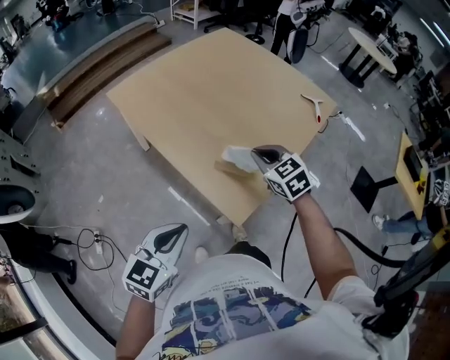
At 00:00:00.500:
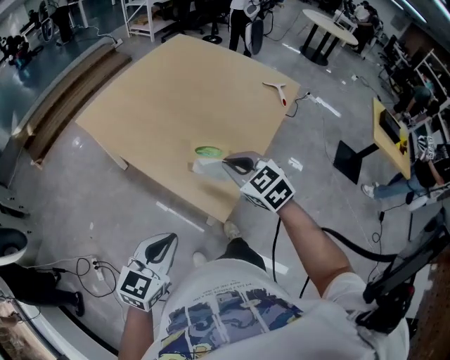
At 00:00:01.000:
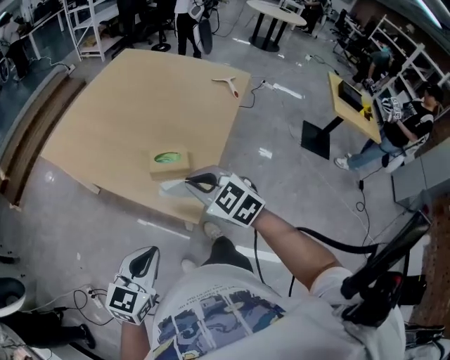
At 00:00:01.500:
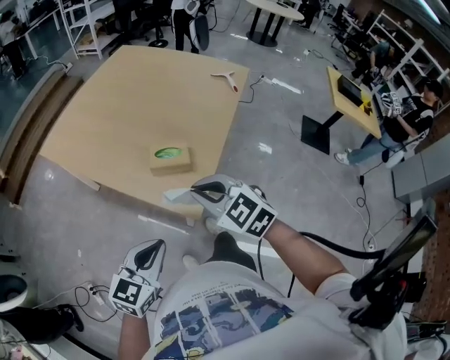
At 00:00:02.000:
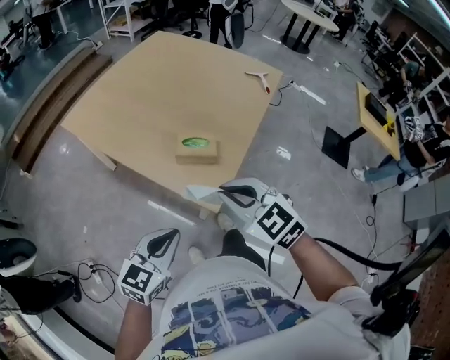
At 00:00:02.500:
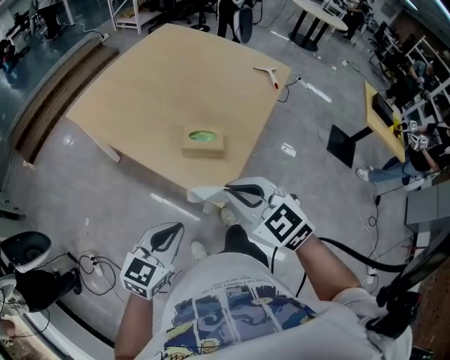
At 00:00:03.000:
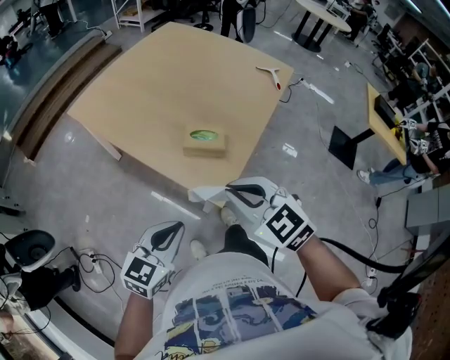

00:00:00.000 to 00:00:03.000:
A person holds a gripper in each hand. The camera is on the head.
00:00:00.000 to 00:00:01.500: The left gripper goes some 5 cm to the right, while the right gripper moves backward, approximately 15 cm.
00:00:01.500 to 00:00:03.000: The grippers stay close to where they were, moving slightly.

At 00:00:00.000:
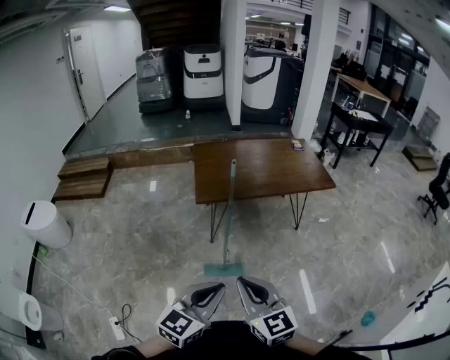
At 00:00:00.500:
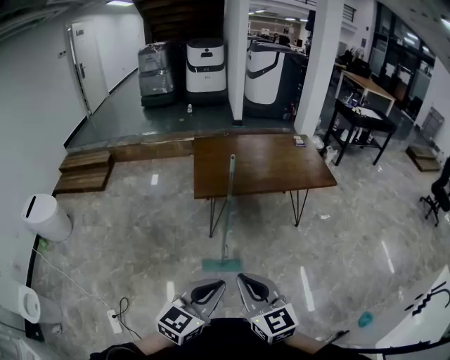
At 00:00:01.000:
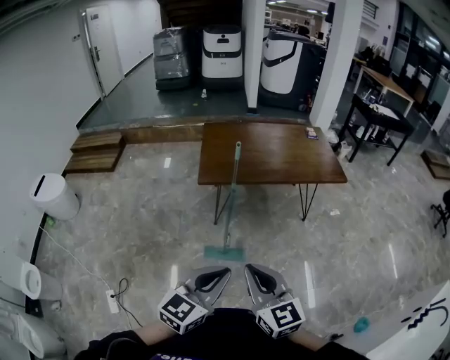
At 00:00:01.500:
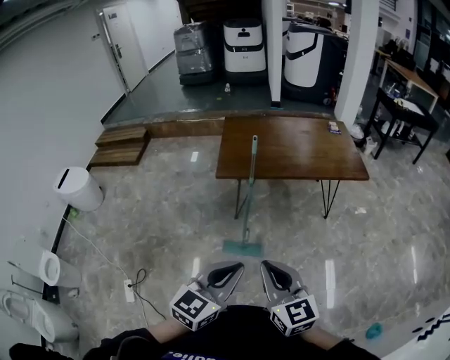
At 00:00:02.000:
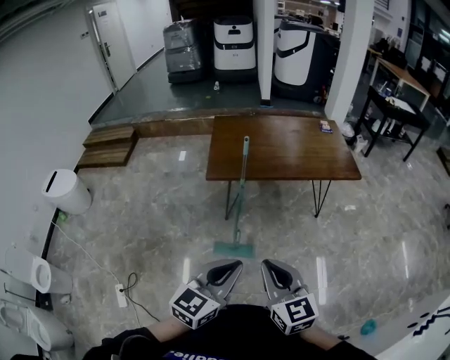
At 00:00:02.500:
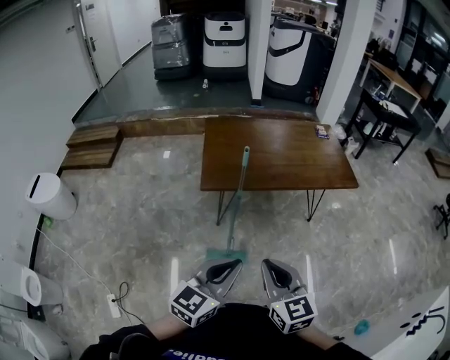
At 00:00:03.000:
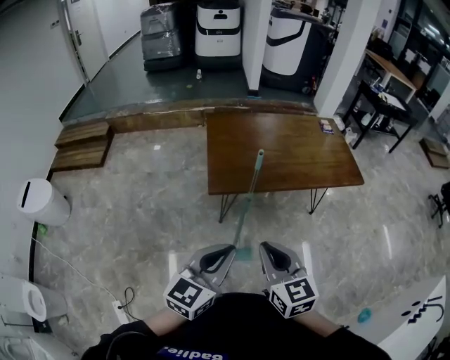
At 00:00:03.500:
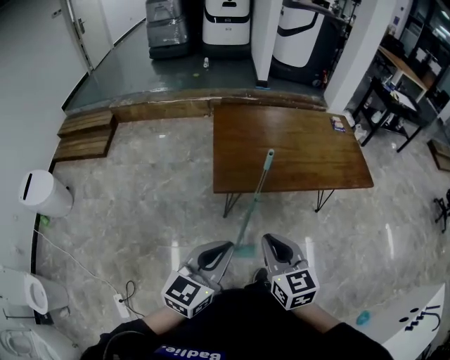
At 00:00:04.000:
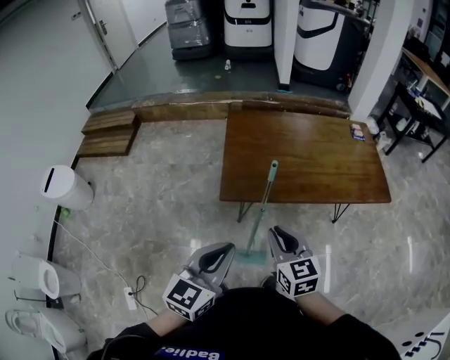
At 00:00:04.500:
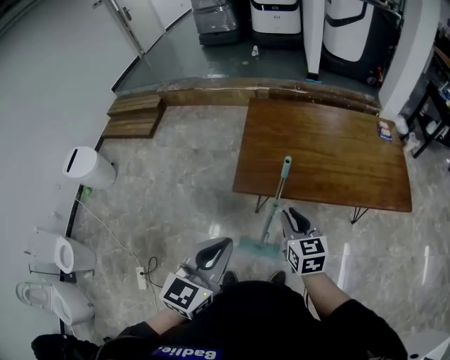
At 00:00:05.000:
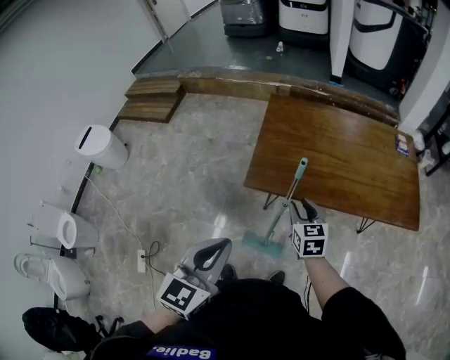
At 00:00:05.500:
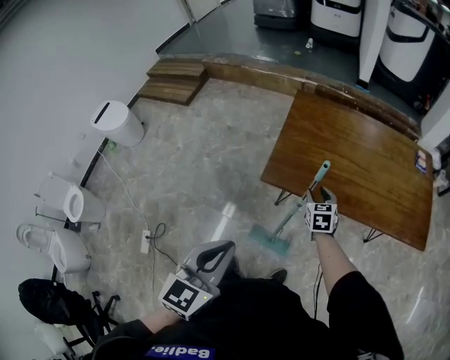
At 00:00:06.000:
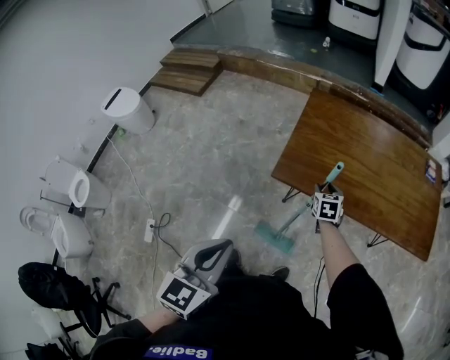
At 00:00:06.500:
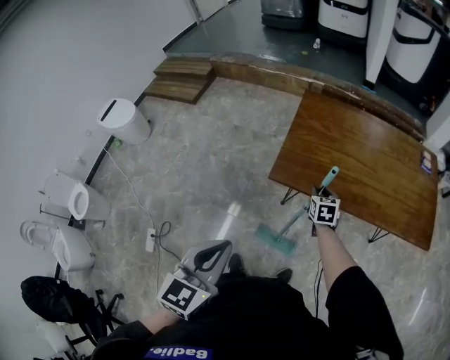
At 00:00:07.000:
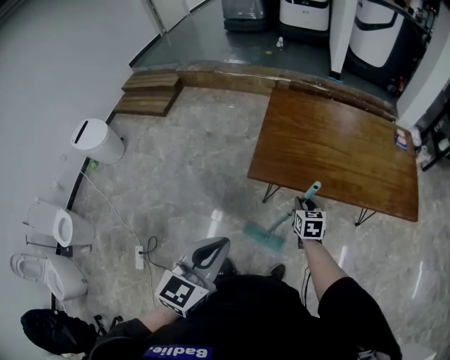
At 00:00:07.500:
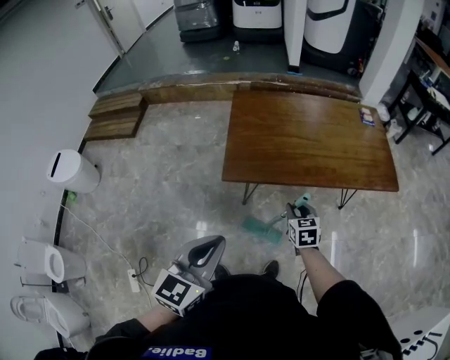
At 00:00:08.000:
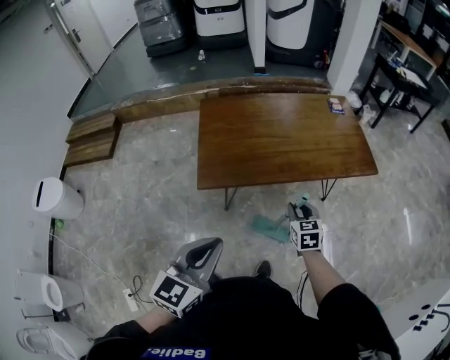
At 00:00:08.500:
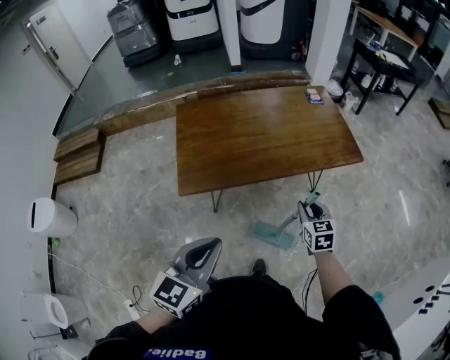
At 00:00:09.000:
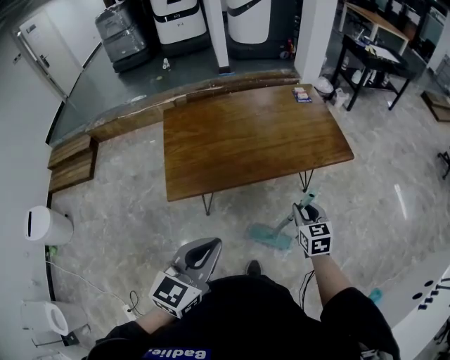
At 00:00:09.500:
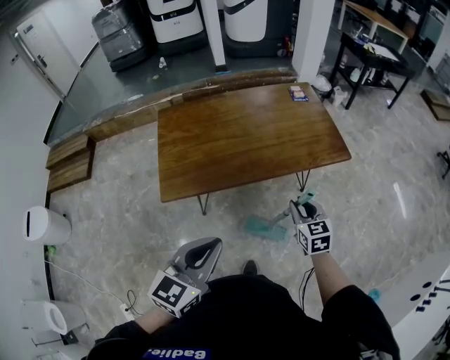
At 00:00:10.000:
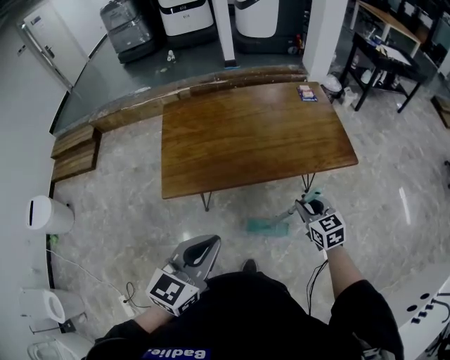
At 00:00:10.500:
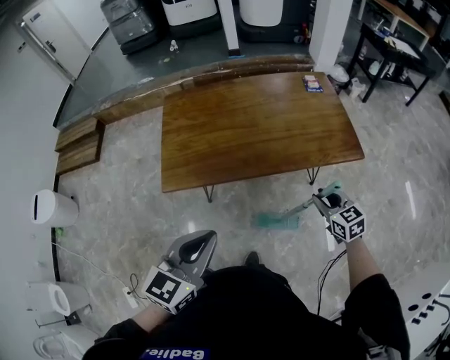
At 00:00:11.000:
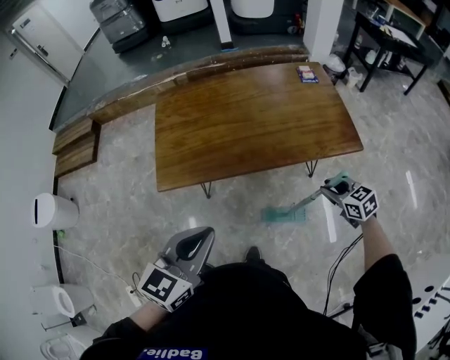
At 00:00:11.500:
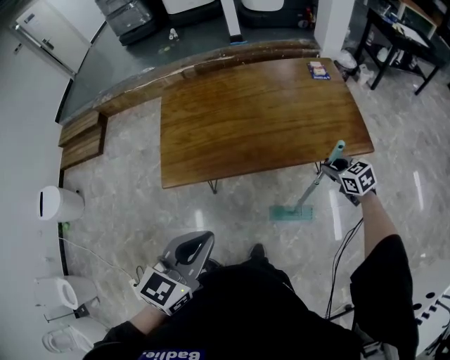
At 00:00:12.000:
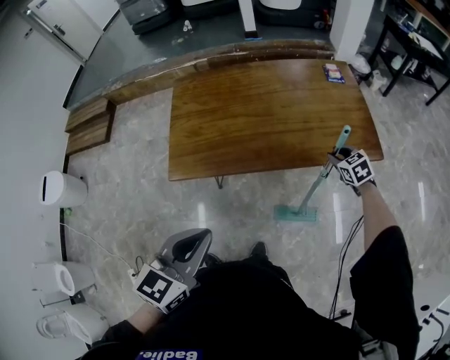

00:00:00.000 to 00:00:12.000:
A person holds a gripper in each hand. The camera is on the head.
00:00:00.000 to 00:00:02.000: Both grippers move to the right and forward, some 10 cm.
00:00:02.000 to 00:00:04.000: The right gripper goes some 30 cm forward; the left gripper goes some 25 cm forward and to the left.
00:00:04.000 to 00:00:06.000: The right gripper travels forward and downward by roughly 30 cm, and changes its angle by roughly 20 degrees. The left gripper turns by roughly 30 degrees.
00:00:06.000 to 00:00:08.000: The left gripper ends up approximately 10 cm from where it was, and rotates some 30 degrees; the right gripper ends up about 25 cm from where it was.
00:00:08.000 to 00:00:10.000: The left gripper goes roughly 15 cm to the right and forward; the right gripper goes about 15 cm to the right.
00:00:10.000 to 00:00:12.000: The right gripper is displaced forward, to the right and downward by about 20 cm, and rotates some 20 degrees.

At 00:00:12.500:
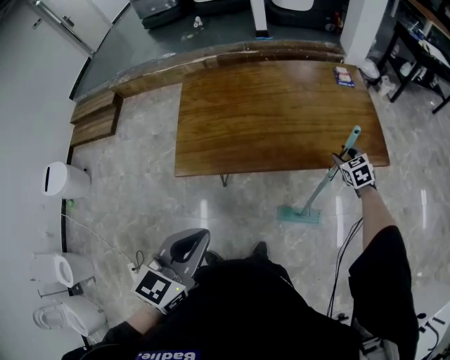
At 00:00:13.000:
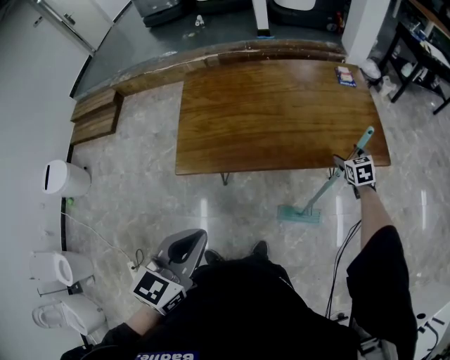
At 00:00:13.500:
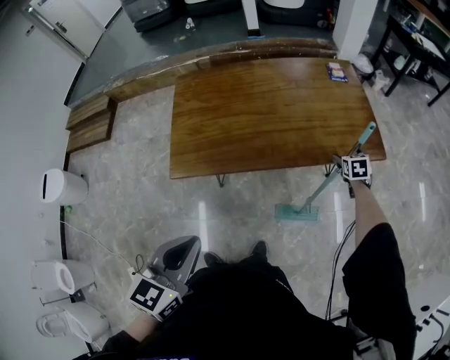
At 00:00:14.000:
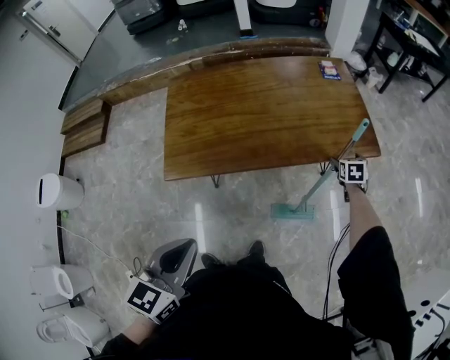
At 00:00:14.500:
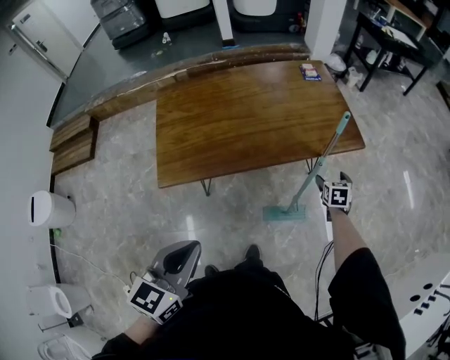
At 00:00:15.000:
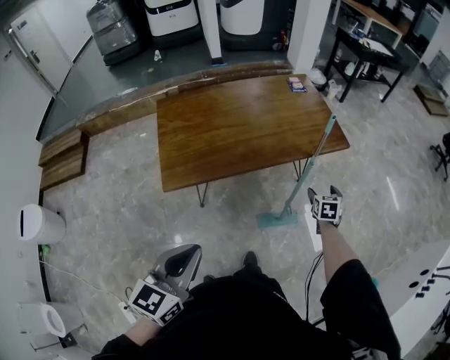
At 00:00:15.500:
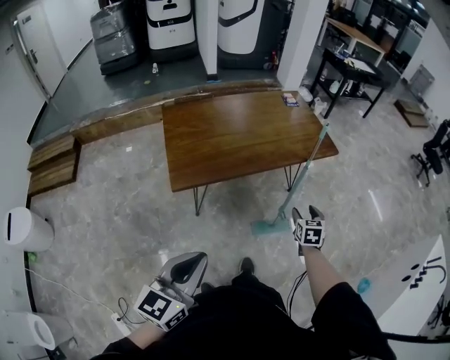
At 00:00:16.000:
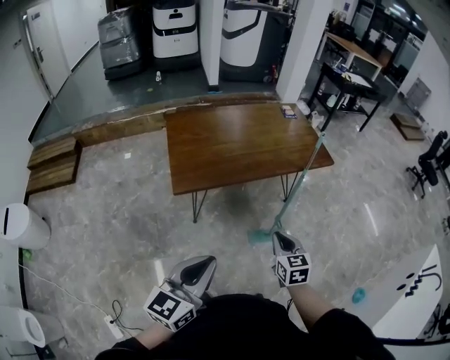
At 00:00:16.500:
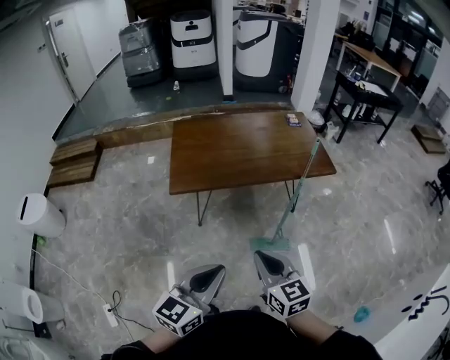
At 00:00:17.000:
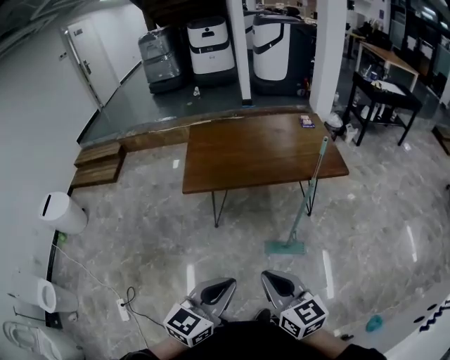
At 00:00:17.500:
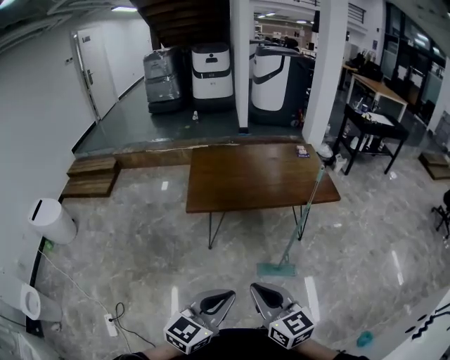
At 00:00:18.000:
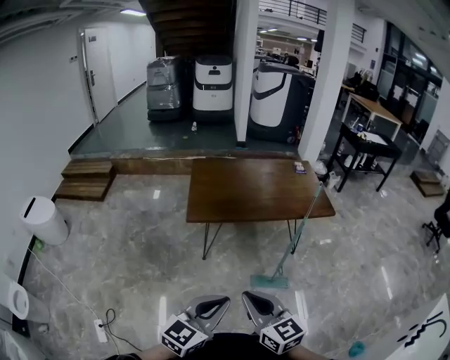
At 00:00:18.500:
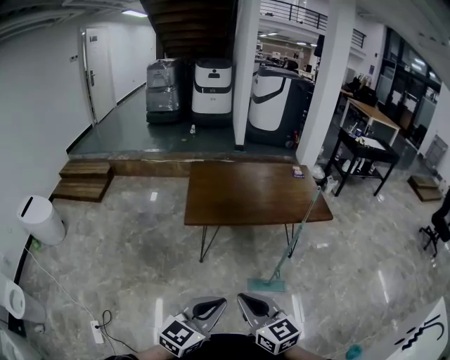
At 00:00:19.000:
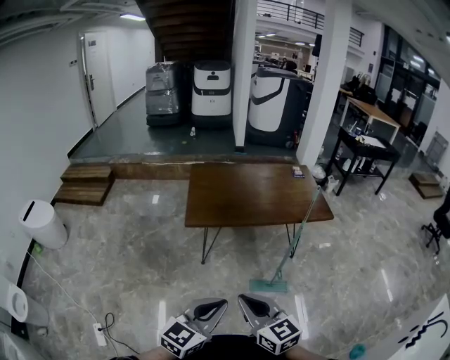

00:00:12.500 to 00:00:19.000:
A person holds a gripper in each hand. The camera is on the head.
00:00:12.500 to 00:00:14.500: The right gripper is displaced backward and to the right by some 15 cm, changes its angle by some 40 degrees, and opens up.
00:00:14.500 to 00:00:17.000: The left gripper ends up about 25 cm from where it was. Meanwhile the right gripper moves some 60 cm, points its fingers about 40 degrees further upward, and closes.
00:00:17.000 to 00:00:19.000: Both grippers travel together to the left, some 10 cm.

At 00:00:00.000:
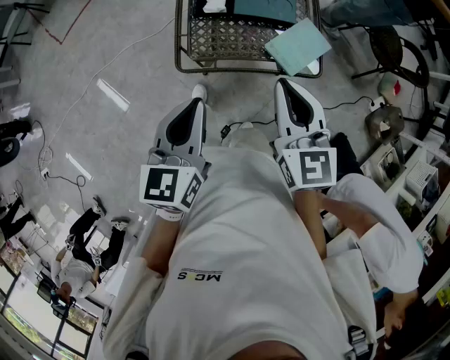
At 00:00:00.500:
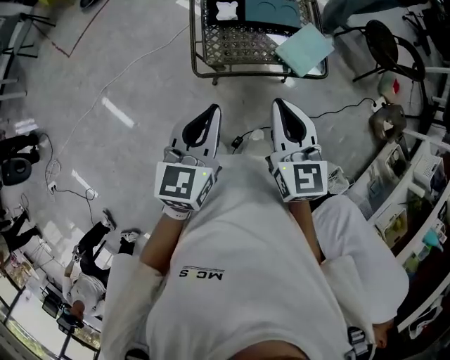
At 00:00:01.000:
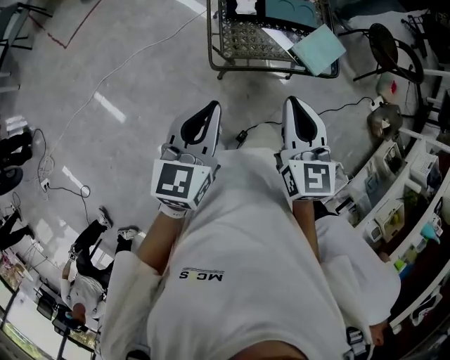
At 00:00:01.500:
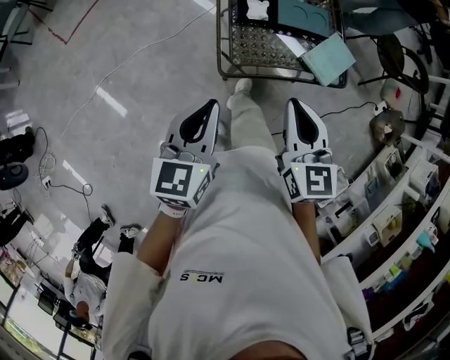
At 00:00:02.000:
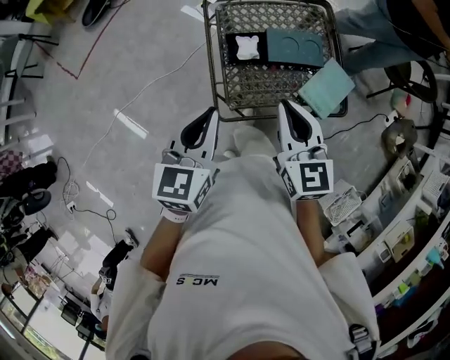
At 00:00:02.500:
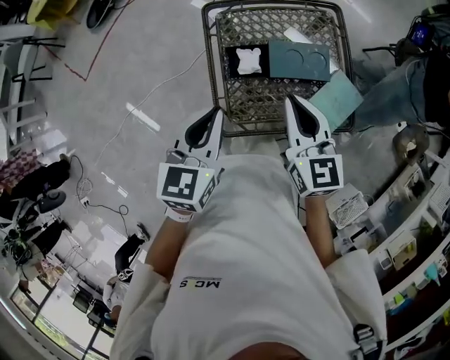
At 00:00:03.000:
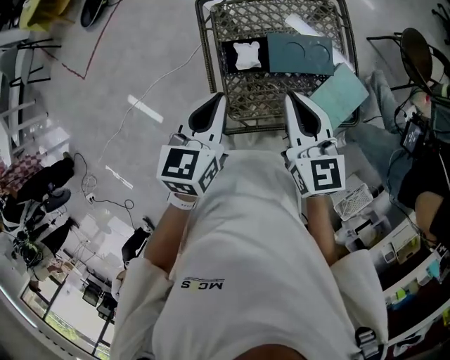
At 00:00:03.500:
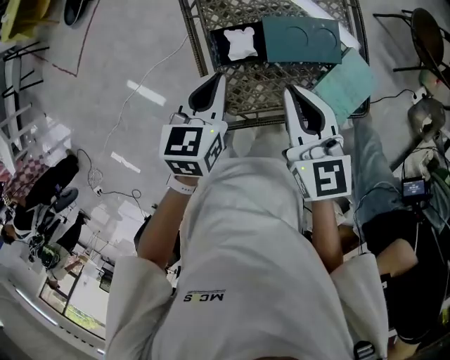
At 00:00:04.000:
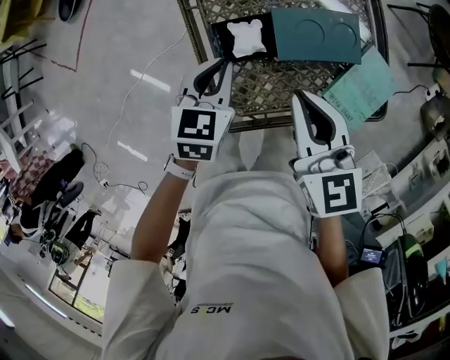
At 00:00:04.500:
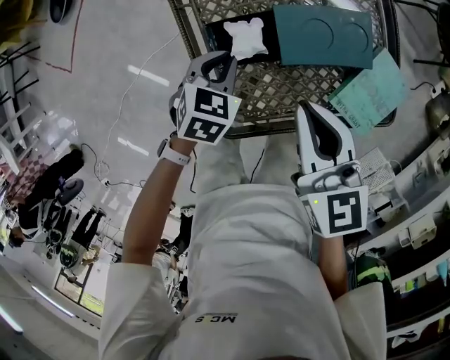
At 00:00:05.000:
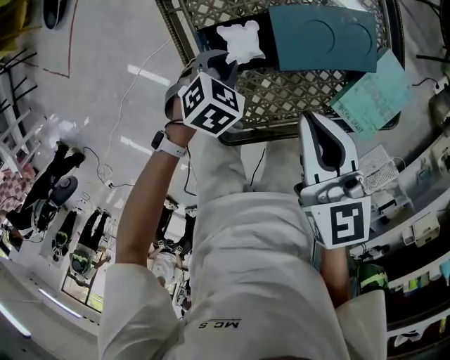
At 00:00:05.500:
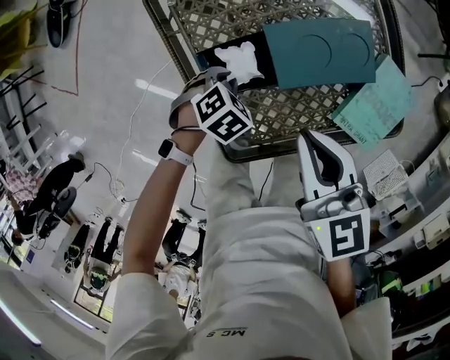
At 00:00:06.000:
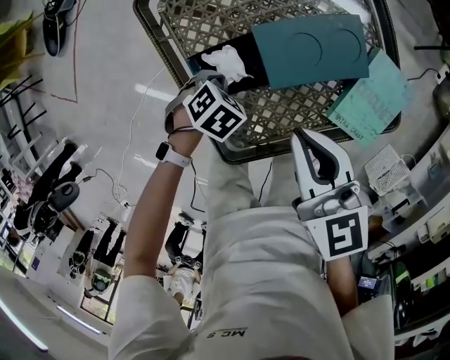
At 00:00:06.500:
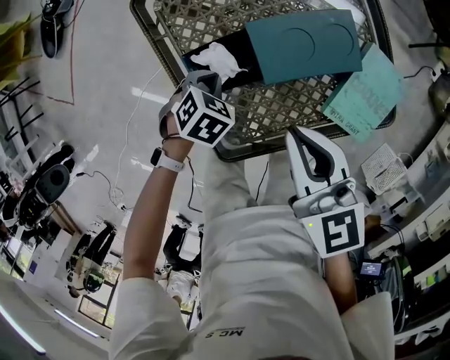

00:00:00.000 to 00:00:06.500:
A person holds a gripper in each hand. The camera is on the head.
00:00:00.000 to 00:00:02.000: The left gripper moves forward and to the left, roughly 20 cm, while the right gripper is displaced to the left and forward by roughly 15 cm.
00:00:02.000 to 00:00:04.500: The left gripper goes about 40 cm downward and forward, and angles its fingers downward, by roughly 40 degrees. Meanwhile the right gripper heads forward and downward, covering roughly 25 cm.
00:00:04.500 to 00:00:06.500: The left gripper moves downward, about 5 cm, and changes its angle by approximately 20 degrees.
